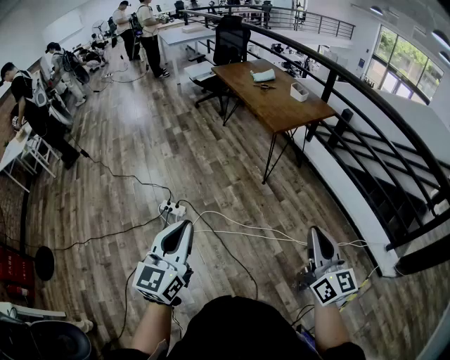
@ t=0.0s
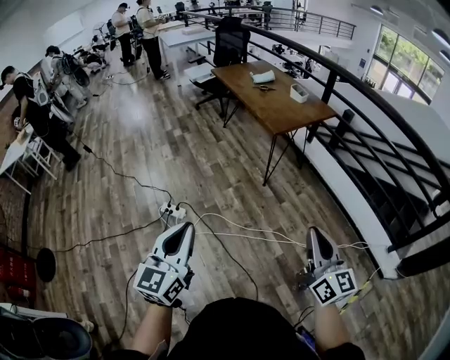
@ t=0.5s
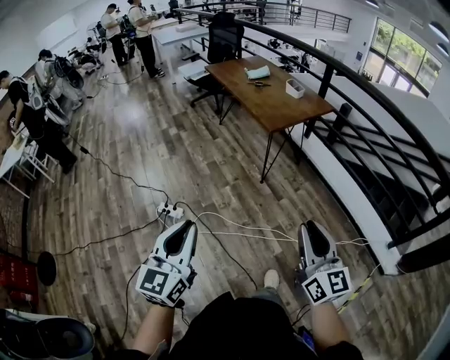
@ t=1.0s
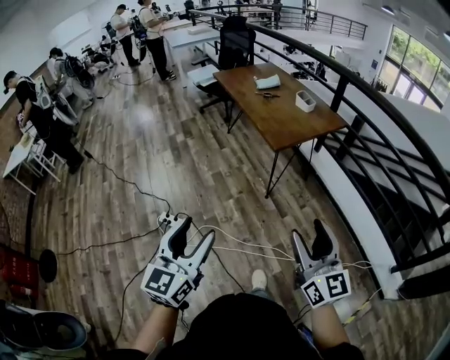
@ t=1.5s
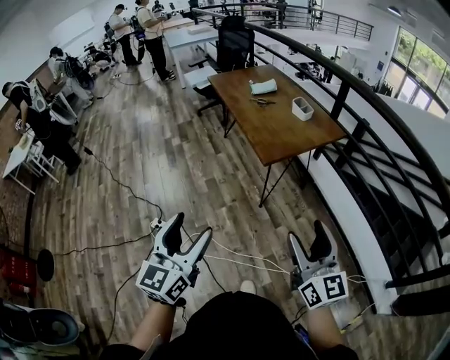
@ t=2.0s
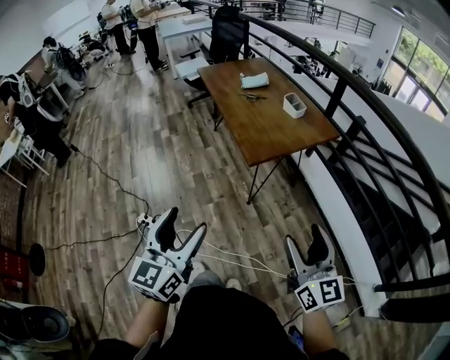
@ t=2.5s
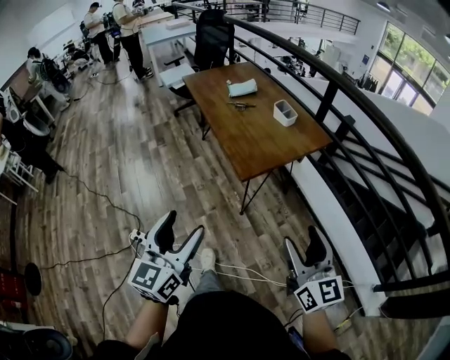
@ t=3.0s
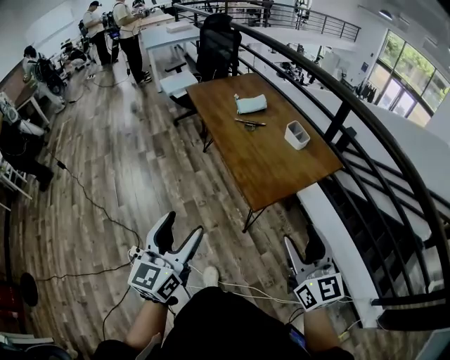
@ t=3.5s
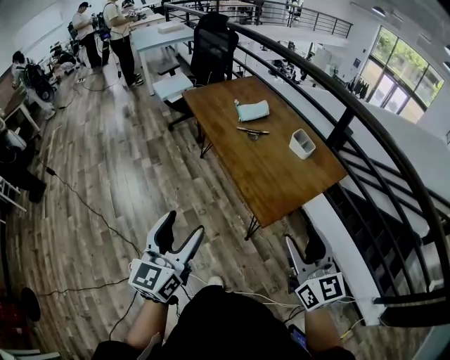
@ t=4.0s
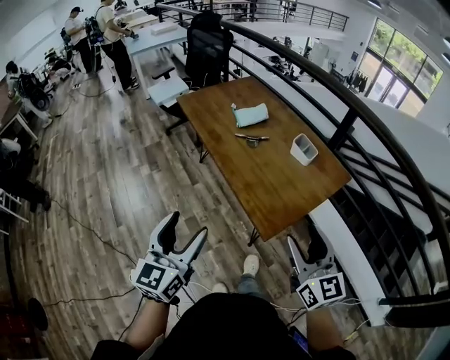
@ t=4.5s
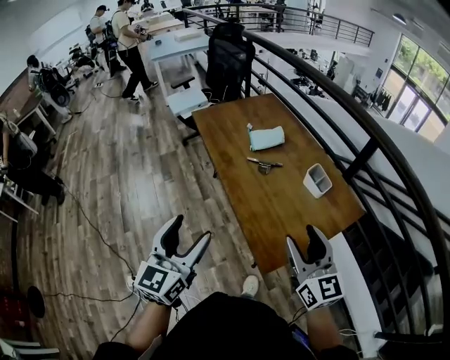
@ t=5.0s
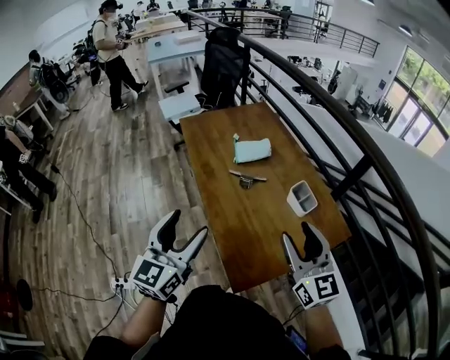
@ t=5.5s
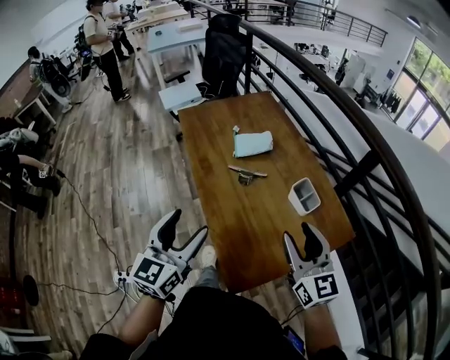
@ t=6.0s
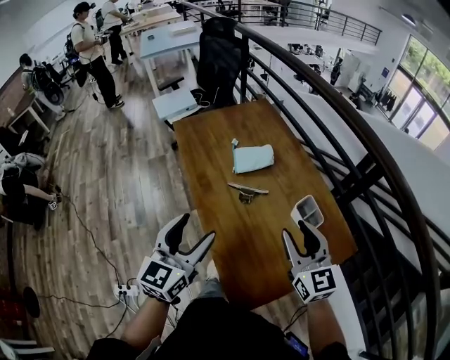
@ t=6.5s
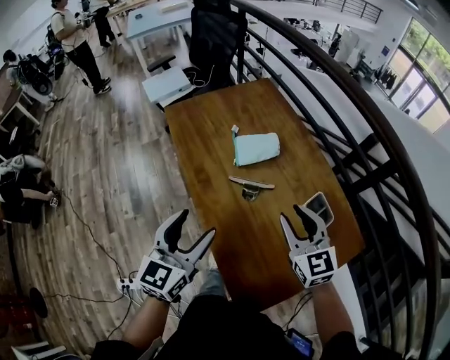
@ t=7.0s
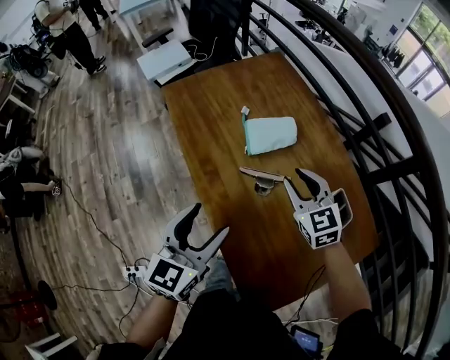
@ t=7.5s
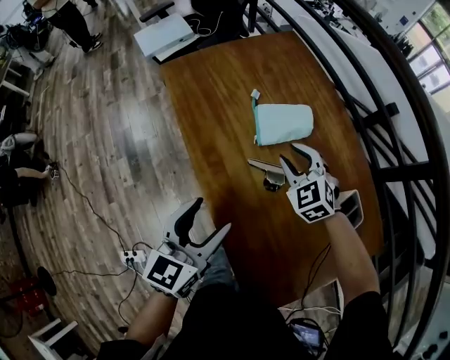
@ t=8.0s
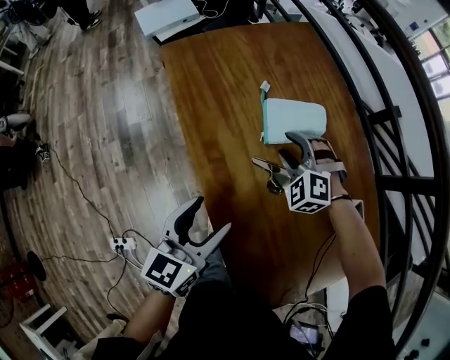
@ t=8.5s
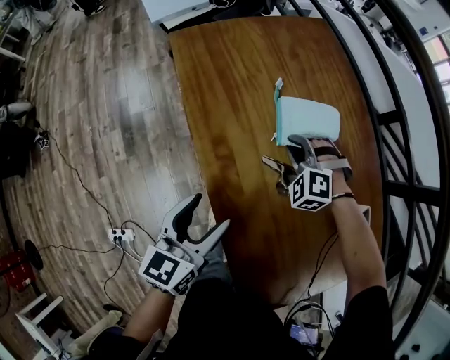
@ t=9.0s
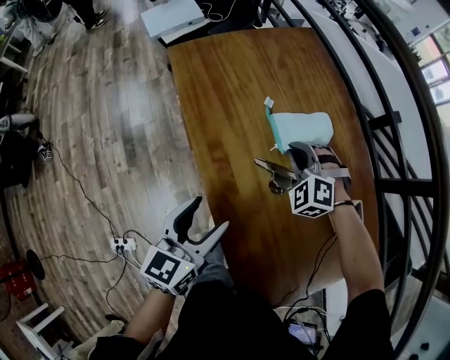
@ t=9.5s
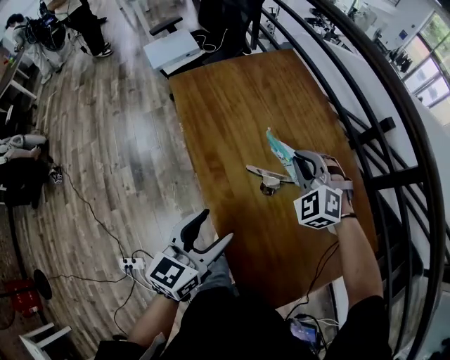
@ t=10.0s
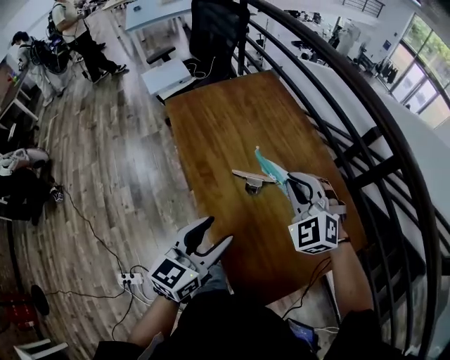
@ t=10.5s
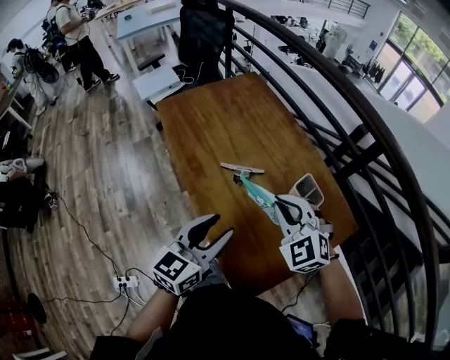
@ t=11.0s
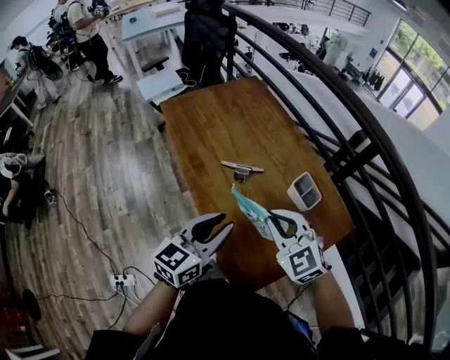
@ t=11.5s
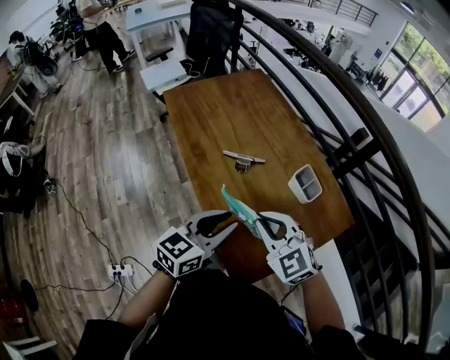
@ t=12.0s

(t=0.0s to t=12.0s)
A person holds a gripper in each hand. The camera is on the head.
t=0.0s - t=2.0s: Both grippers travel together forward and to the right, some 25 cm. The left gripper opens up, while the right gripper opens.
t=2.0s - t=4.0s: The grippers both shift forward by about 30 cm.
t=4.0s - t=6.0s: The left gripper travels forward and to the right by roughly 30 cm, while the right gripper moves forward, roughly 30 cm.
t=6.0s - t=8.0s: The left gripper shifts roughly 20 cm forward and downward. The right gripper travels forward and downward by about 40 cm, and points its fingers some 30 degrees further downward.
t=8.0s - t=10.0s: The right gripper shifts about 5 cm upward, swivels roughly 20 degrees, and closes its fingers.
t=10.0s - t=12.0s: The left gripper shifts some 15 cm to the right and backward, and closes. Meanwhile the right gripper goes about 30 cm backward, and turns by roughly 30 degrees.

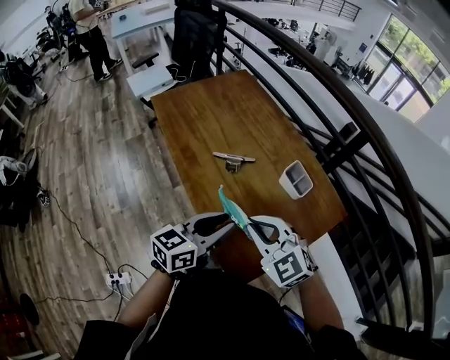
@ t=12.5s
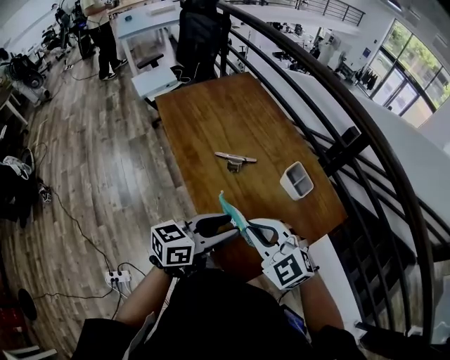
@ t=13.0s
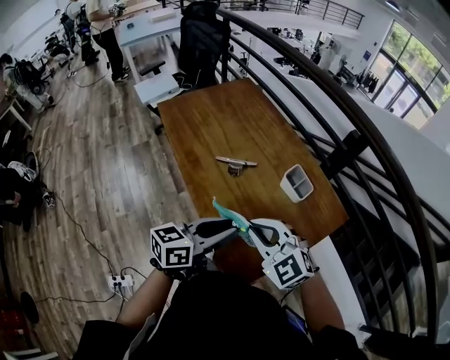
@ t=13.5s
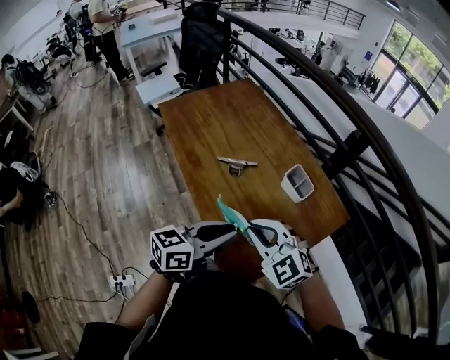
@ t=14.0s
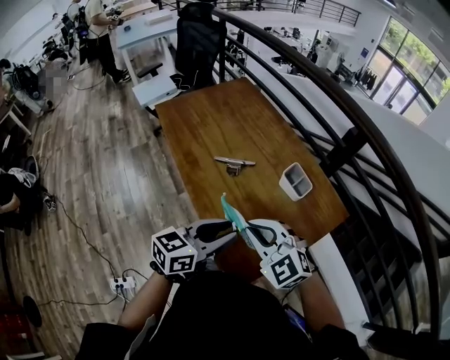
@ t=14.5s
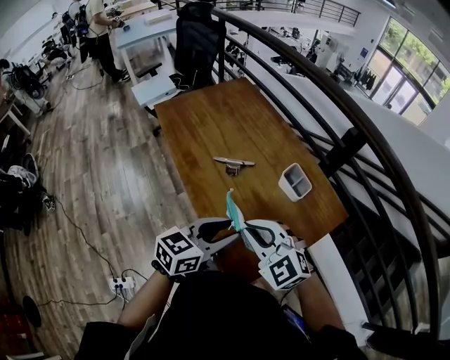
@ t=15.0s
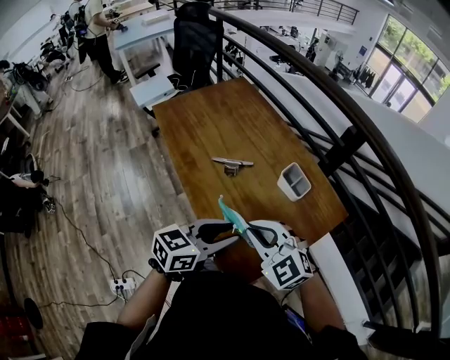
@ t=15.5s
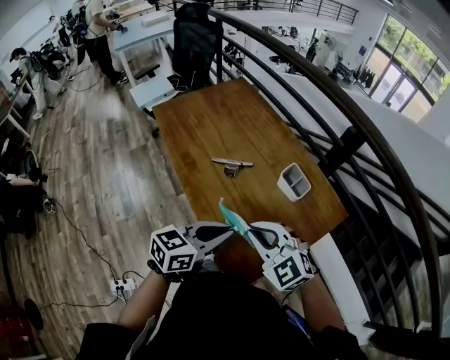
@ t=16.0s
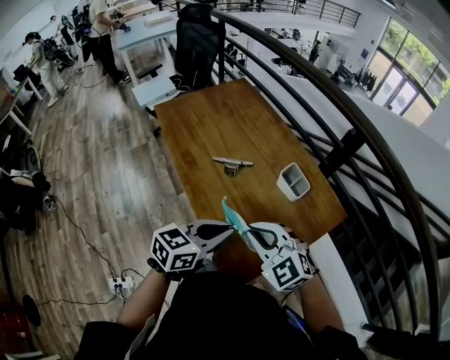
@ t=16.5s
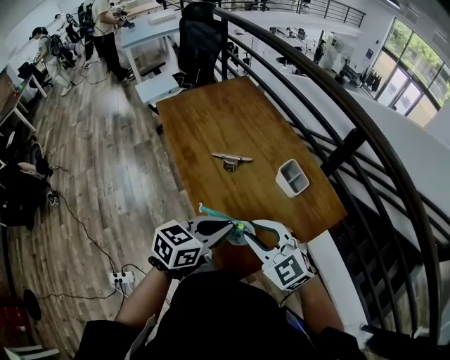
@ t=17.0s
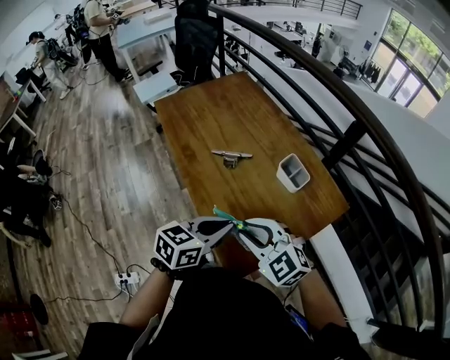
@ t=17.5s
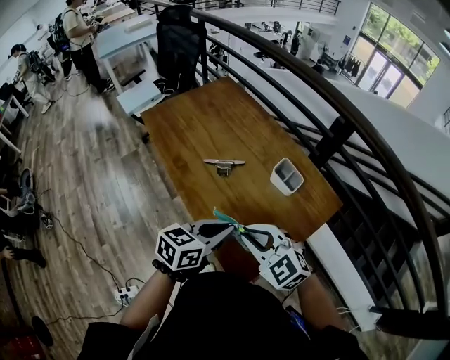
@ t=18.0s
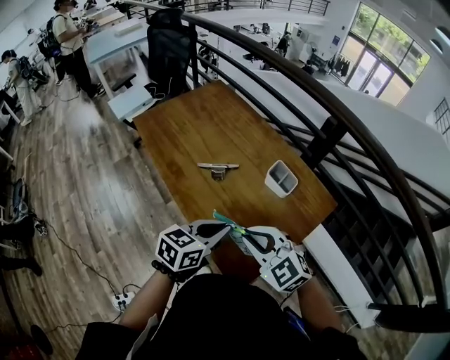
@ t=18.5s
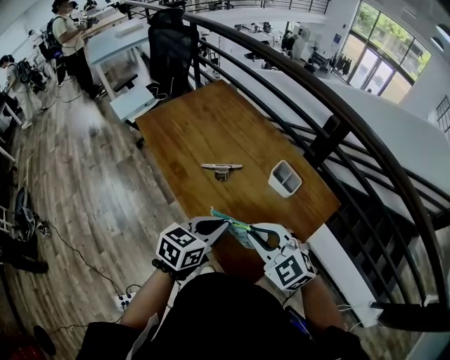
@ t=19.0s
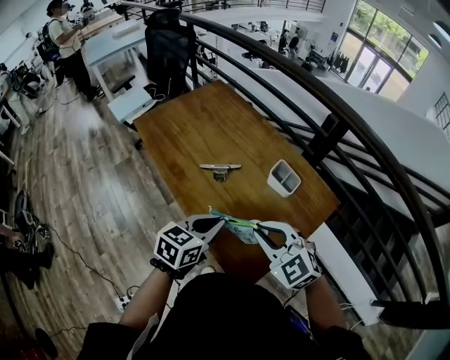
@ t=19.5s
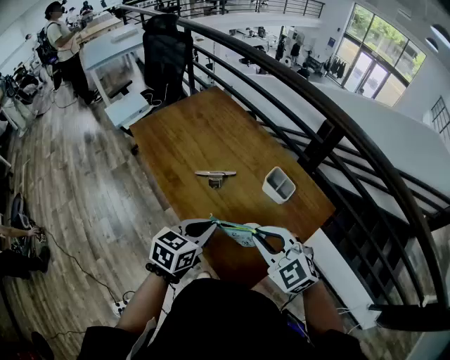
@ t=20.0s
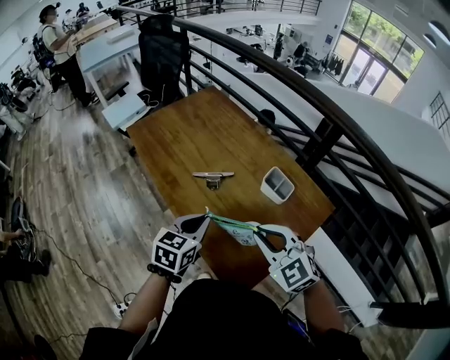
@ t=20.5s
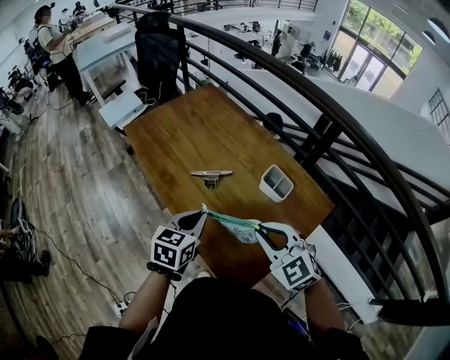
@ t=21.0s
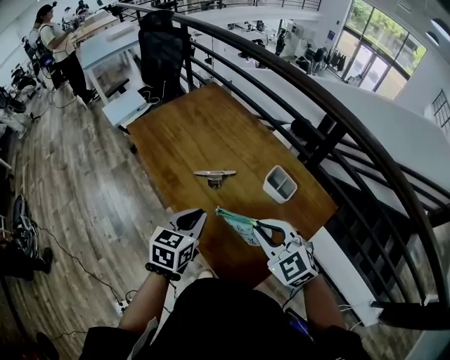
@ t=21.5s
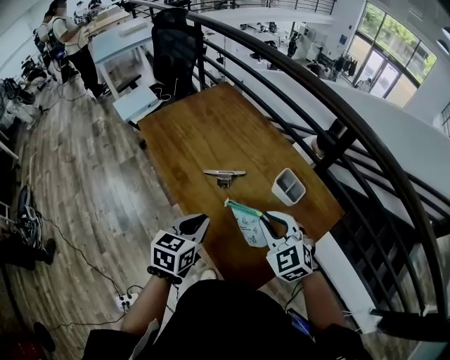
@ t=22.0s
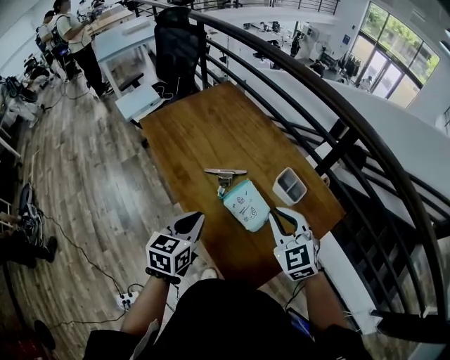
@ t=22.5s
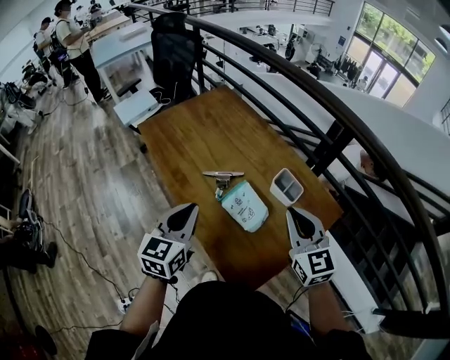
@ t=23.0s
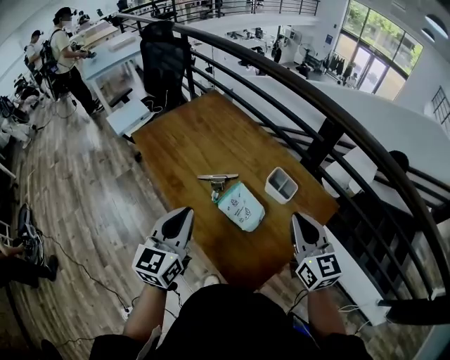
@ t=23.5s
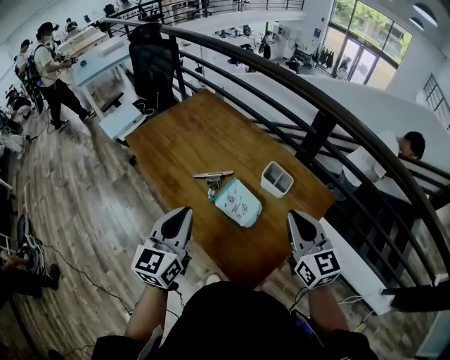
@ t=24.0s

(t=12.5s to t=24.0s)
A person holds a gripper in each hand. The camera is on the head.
t=12.5s - t=18.5s: The grippers move only a little.
t=18.5s - t=20.0s: The grippers make only small movements.
t=20.0s - t=22.0s: The right gripper heads forward, covering about 5 cm.
t=22.0s - t=24.0s: The right gripper moves to the right and upward, approximately 10 cm, and rotates about 40 degrees. Meanwhile the left gripper goes some 10 cm upward, and turns by some 30 degrees.

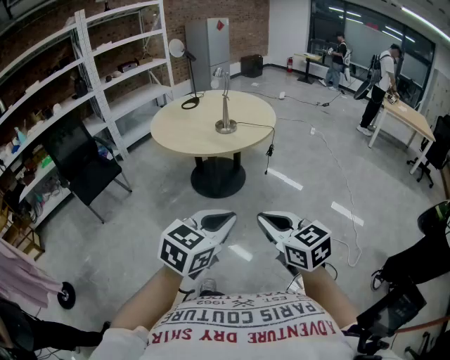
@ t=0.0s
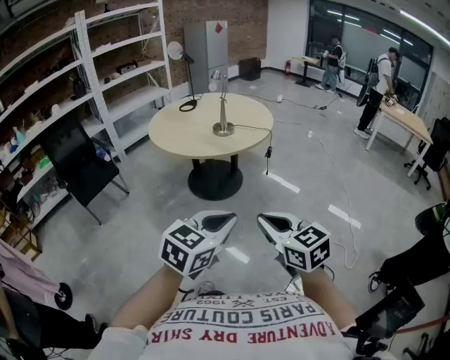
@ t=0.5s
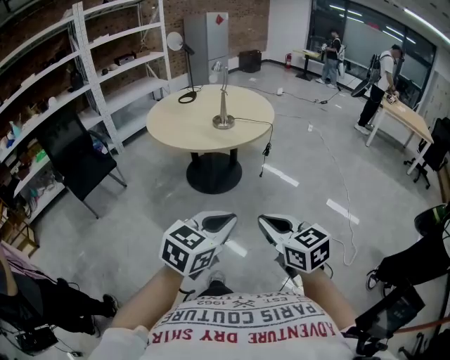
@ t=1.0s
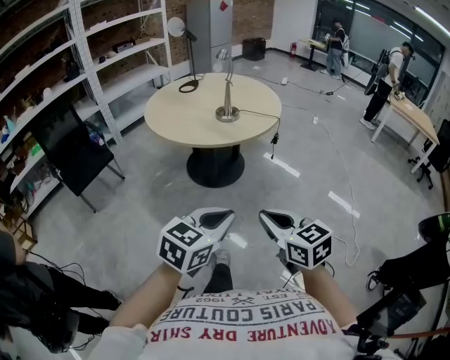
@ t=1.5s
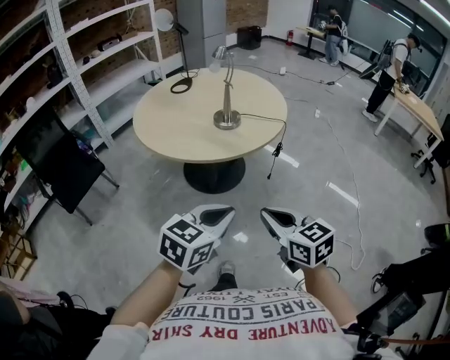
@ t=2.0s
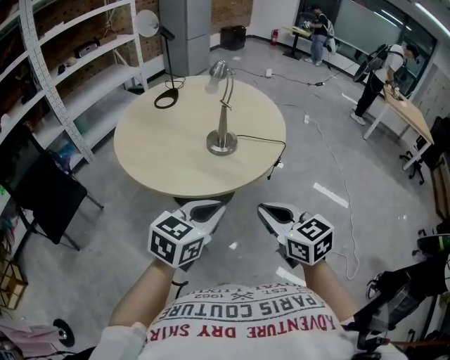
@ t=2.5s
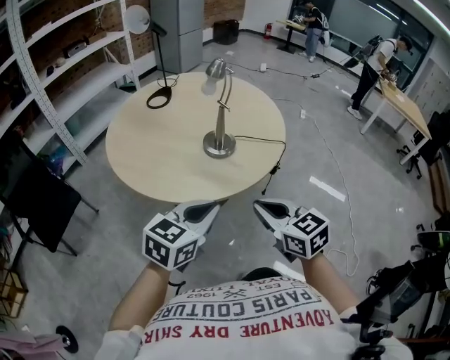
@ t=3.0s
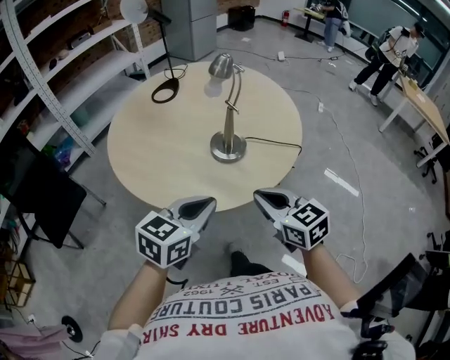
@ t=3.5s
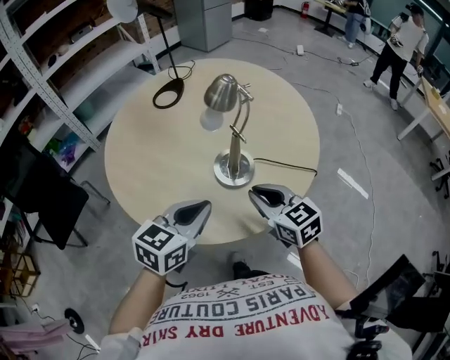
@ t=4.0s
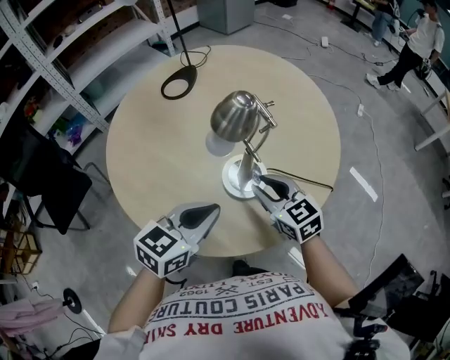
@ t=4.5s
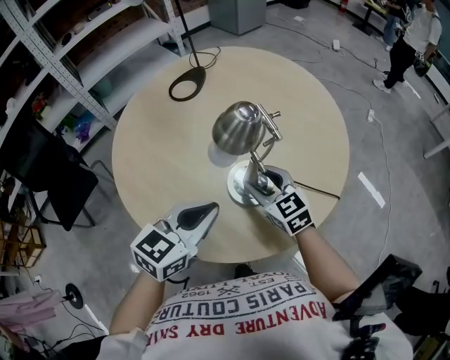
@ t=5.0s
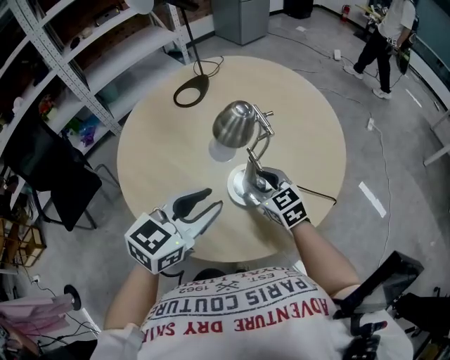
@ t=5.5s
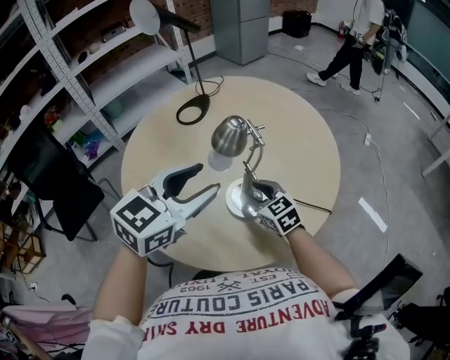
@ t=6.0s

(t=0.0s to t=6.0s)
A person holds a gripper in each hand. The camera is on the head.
t=0.0s - t=2.0s: Both grippers move forward, roughly 20 cm.
t=2.0s - t=4.0s: The grippers both shift forward by some 40 cm.
t=4.0s - t=6.0s: The left gripper moves forward and upward, approximately 15 cm, and opens up, while the right gripper travels forward and downward by approximately 15 cm, and opens.
